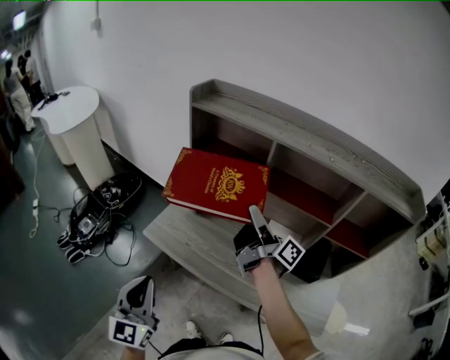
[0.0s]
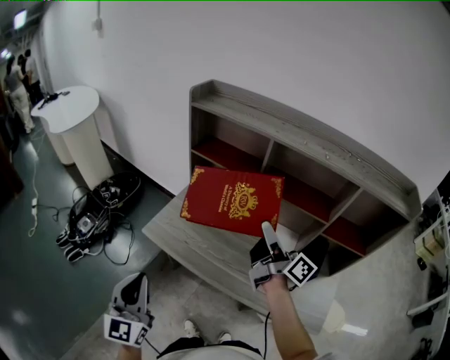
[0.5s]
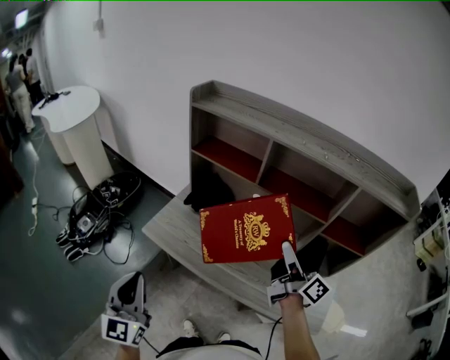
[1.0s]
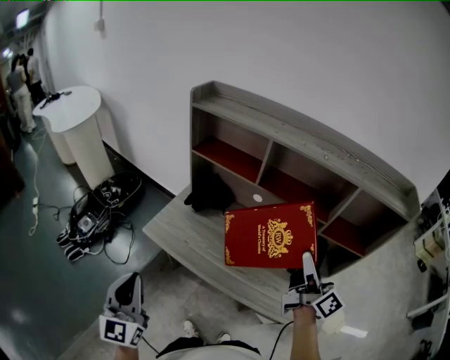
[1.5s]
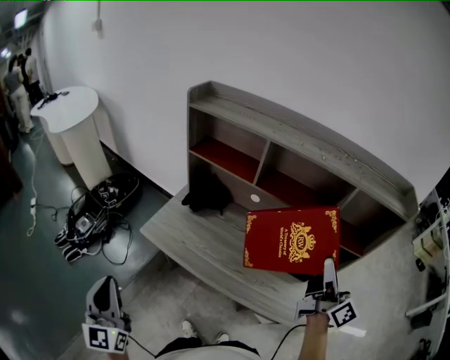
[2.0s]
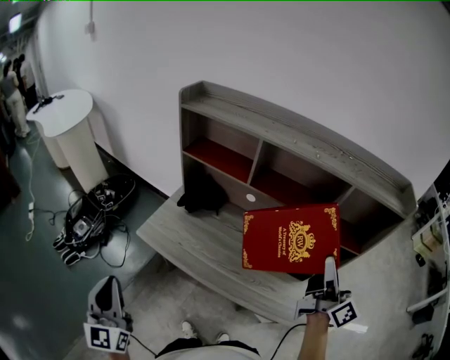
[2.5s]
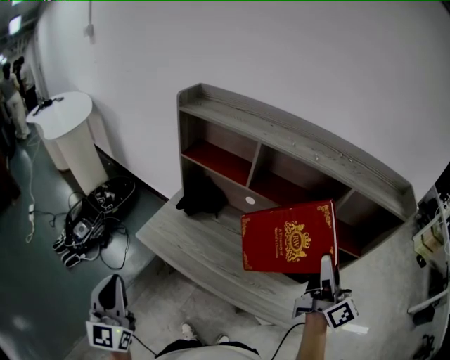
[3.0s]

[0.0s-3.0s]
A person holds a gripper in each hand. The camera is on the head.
0.0s to 1.5s: The right gripper is displaced backward and to the right by approximately 20 cm, and turns by roughly 40 degrees.
1.5s to 3.0s: The right gripper is displaced upward by some 5 cm.

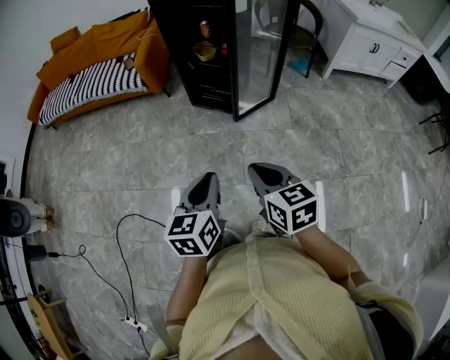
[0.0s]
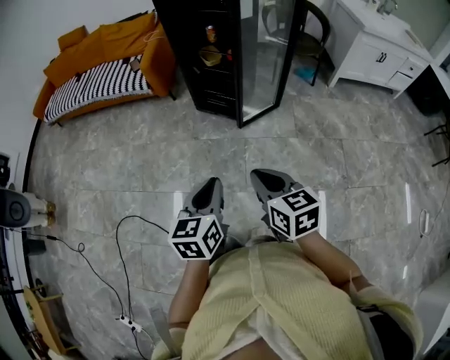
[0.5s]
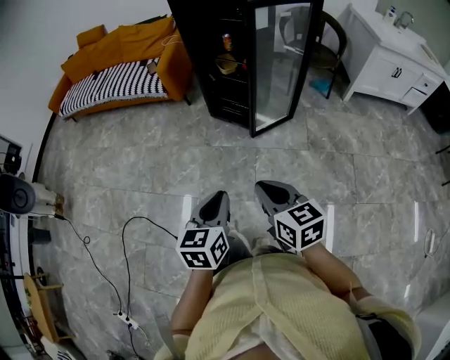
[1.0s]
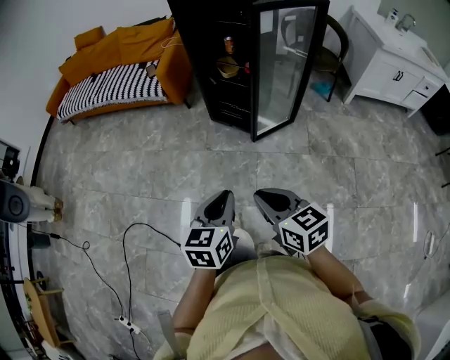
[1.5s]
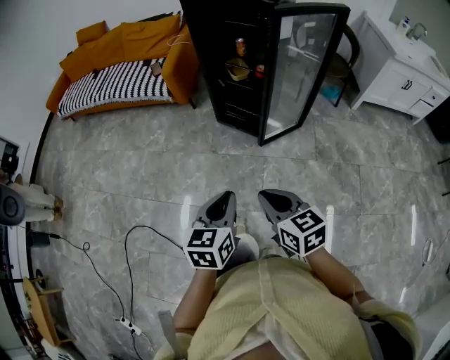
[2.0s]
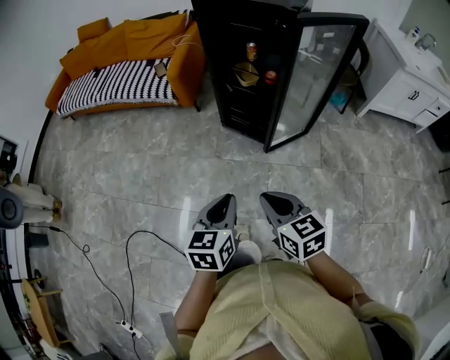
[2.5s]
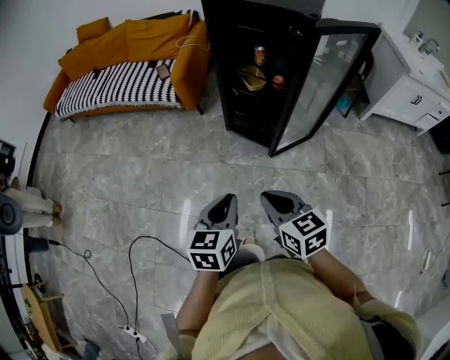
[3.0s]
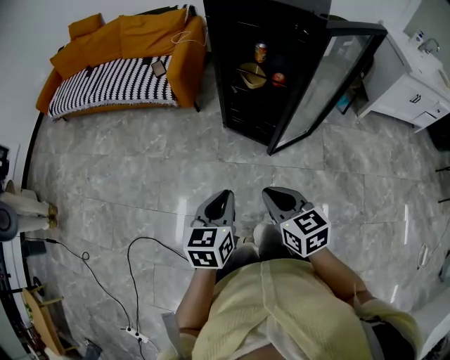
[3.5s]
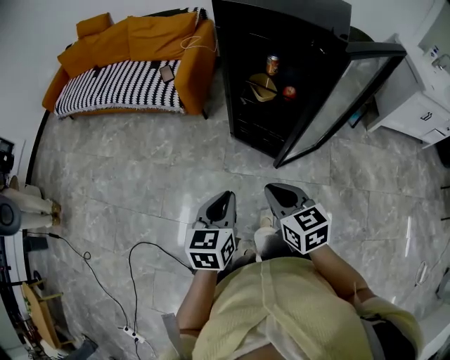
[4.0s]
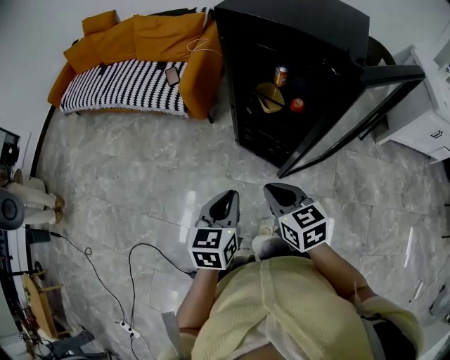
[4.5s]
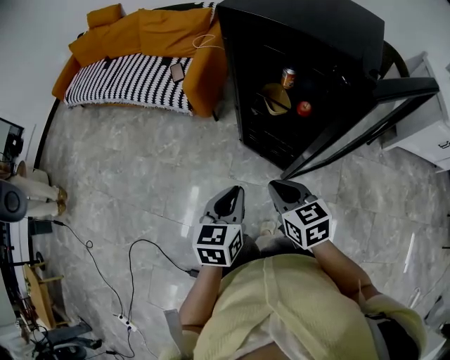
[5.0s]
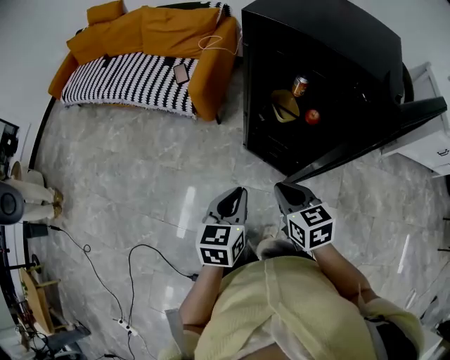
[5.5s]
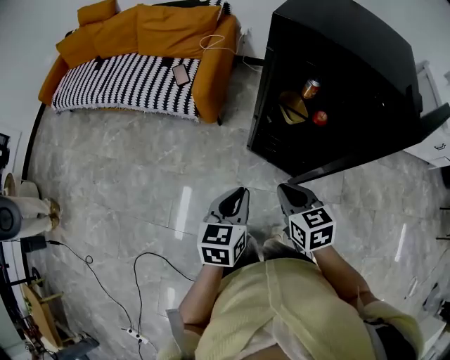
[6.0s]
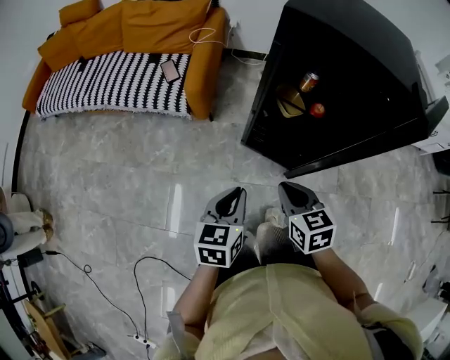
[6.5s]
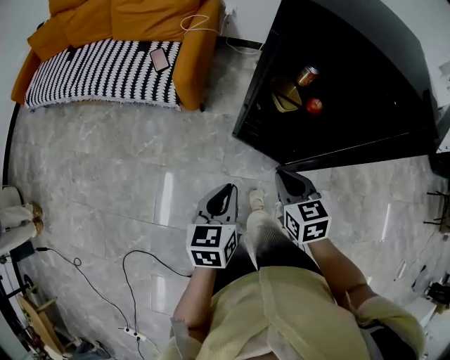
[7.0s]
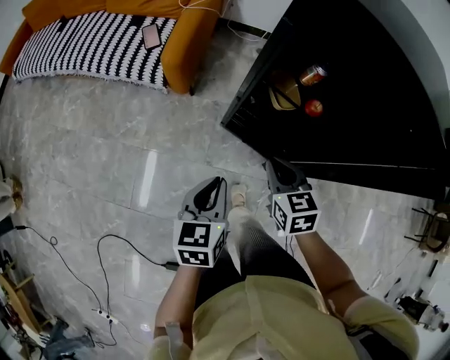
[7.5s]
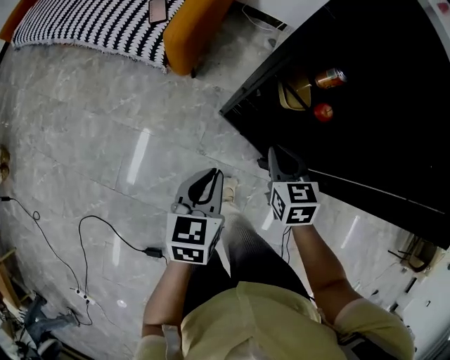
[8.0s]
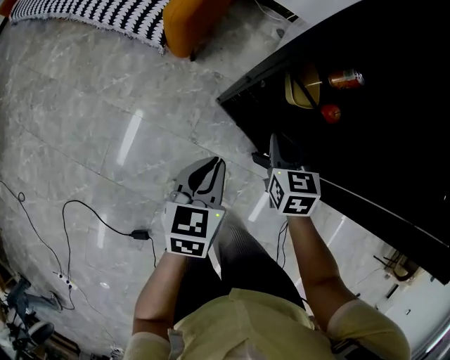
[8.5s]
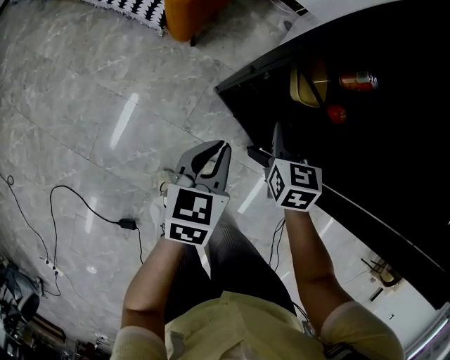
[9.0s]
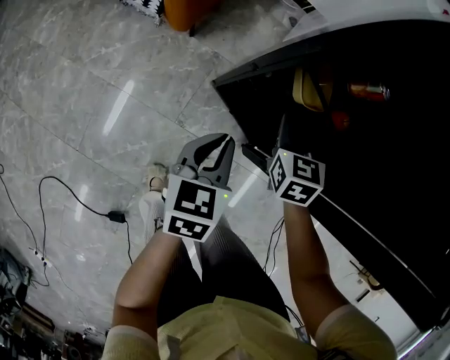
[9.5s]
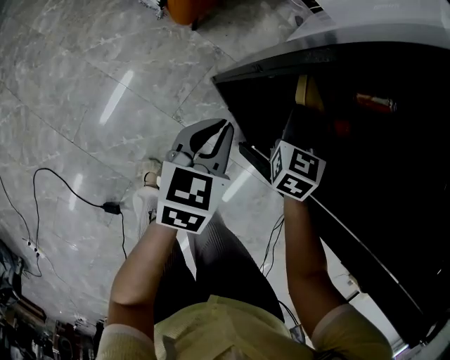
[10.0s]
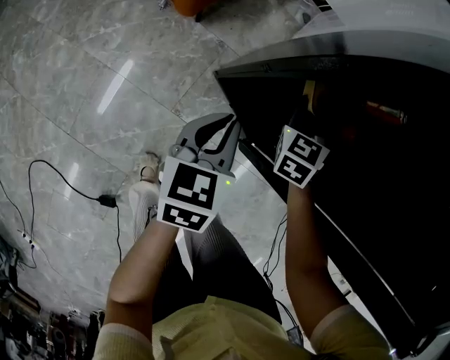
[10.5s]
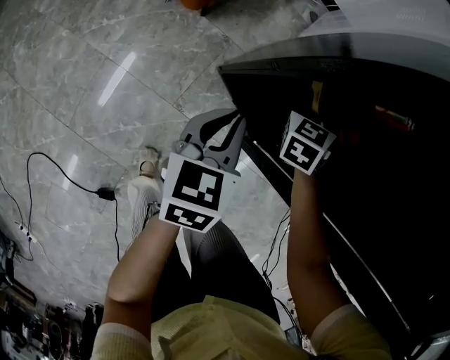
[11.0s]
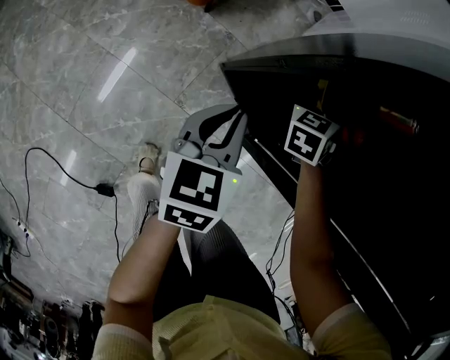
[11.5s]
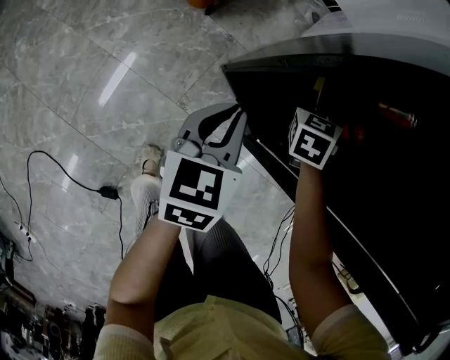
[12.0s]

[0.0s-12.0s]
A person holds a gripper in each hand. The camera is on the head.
0.0s to 2.0s: The two grippers go roughly 10 cm forward.
2.0s to 4.0s: Both grippers move forward, about 20 cm.
4.0s to 6.0s: Both grippers move forward, about 20 cm.
6.0s to 8.0s: The left gripper is displaced downward and forward by approximately 15 cm. Meanwhile the right gripper heads forward and downward, covering about 20 cm.
8.0s to 10.0s: Both grippers move forward and downward, about 15 cm.
10.0s to 12.0s: The right gripper moves approximately 5 cm.

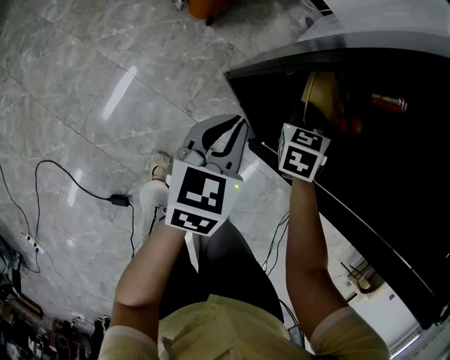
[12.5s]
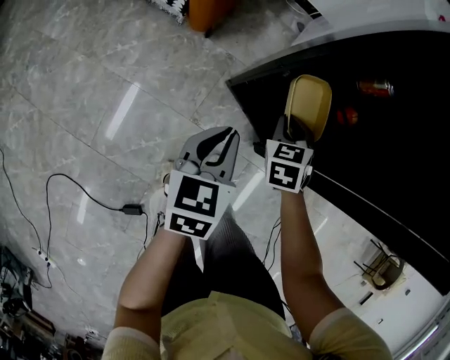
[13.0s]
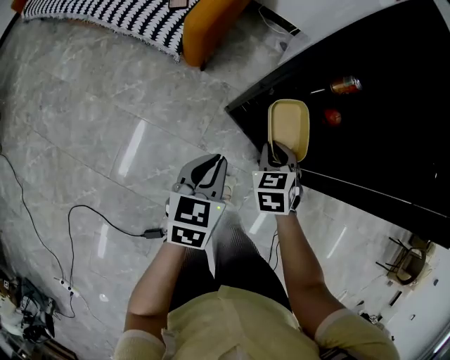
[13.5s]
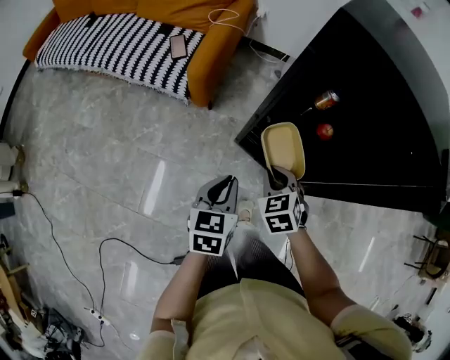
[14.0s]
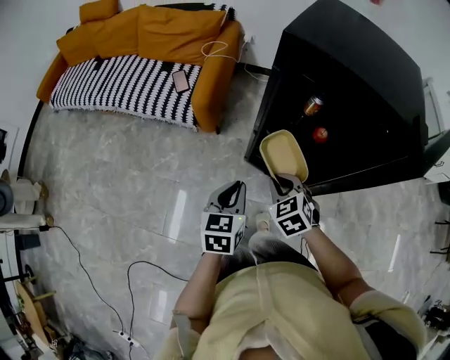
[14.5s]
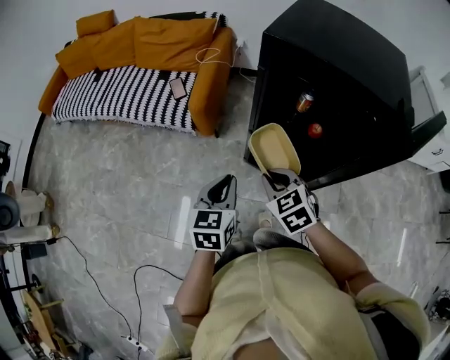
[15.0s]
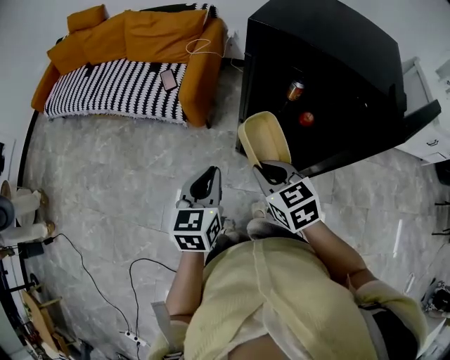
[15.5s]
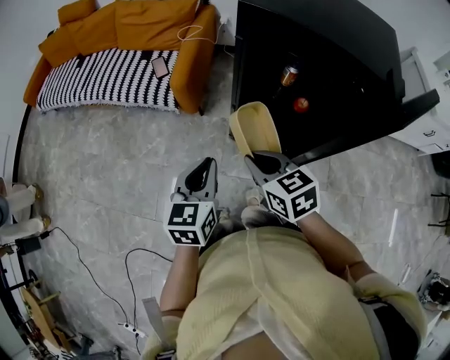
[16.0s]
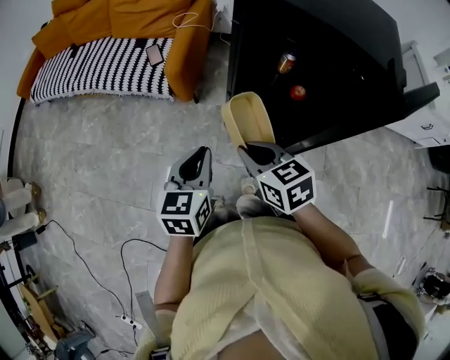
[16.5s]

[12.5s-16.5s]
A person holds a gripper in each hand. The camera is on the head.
12.5s to 14.5s: The two grippers go about 25 cm upward and backward.
14.5s to 16.5s: The right gripper heads upward and backward, covering some 10 cm, and rotates approximately 30 degrees, while the left gripper moves upward, about 5 cm.

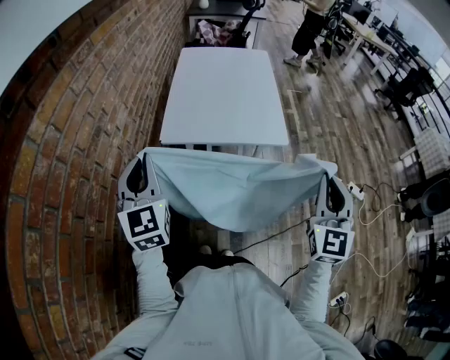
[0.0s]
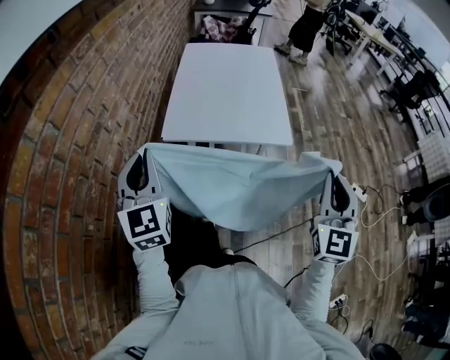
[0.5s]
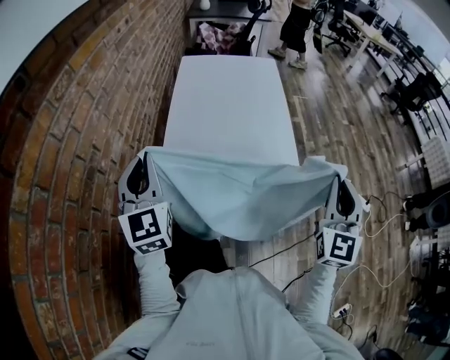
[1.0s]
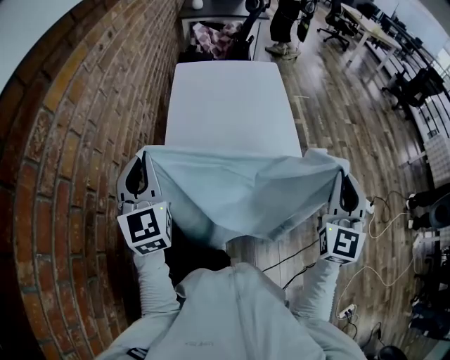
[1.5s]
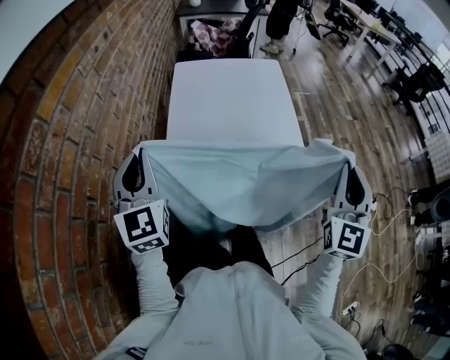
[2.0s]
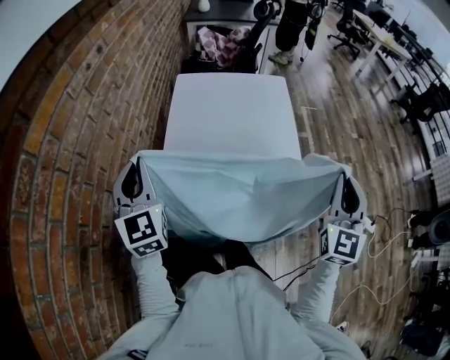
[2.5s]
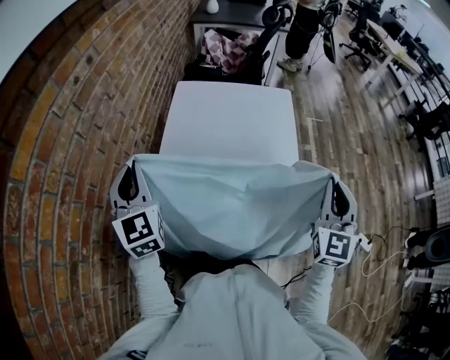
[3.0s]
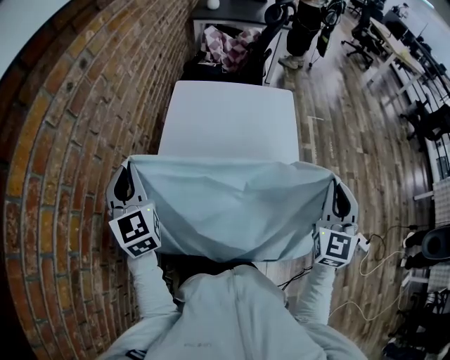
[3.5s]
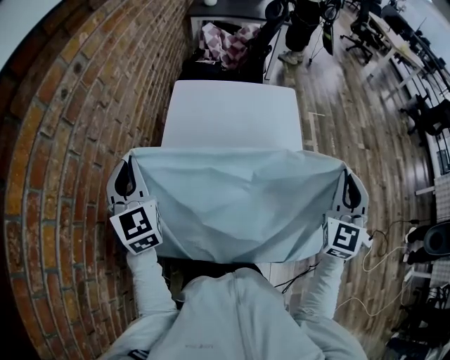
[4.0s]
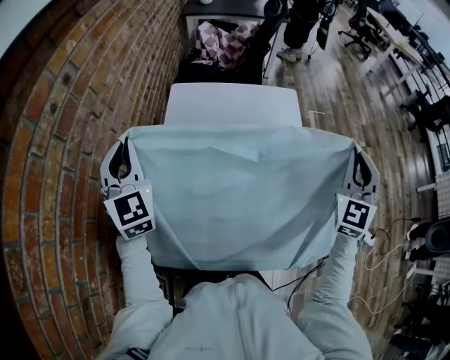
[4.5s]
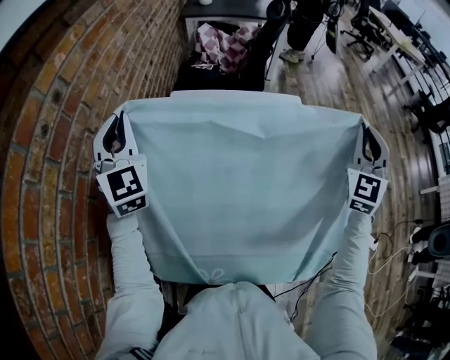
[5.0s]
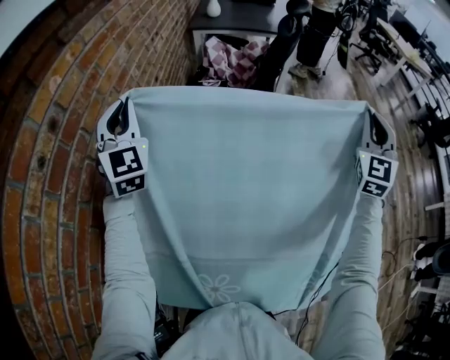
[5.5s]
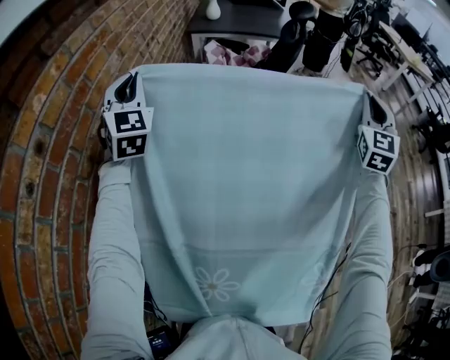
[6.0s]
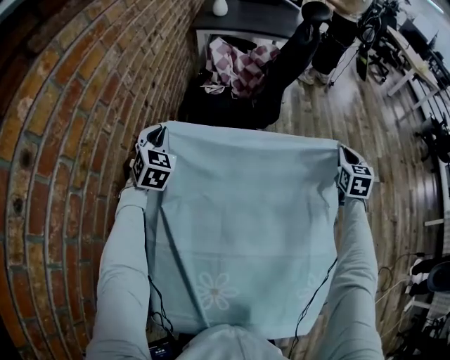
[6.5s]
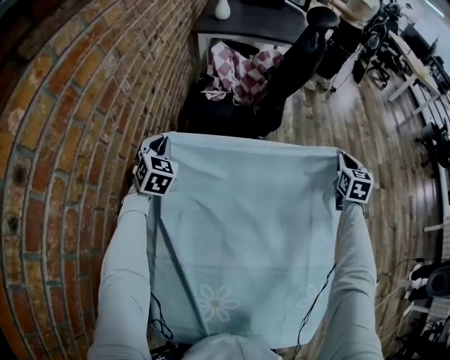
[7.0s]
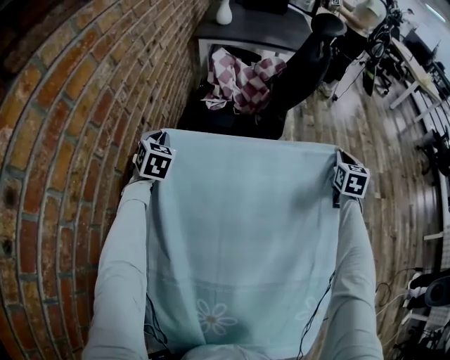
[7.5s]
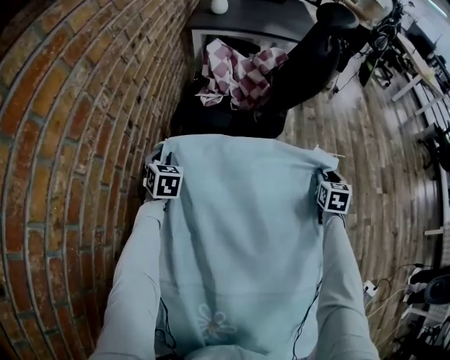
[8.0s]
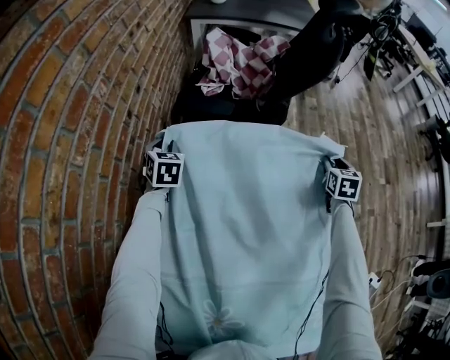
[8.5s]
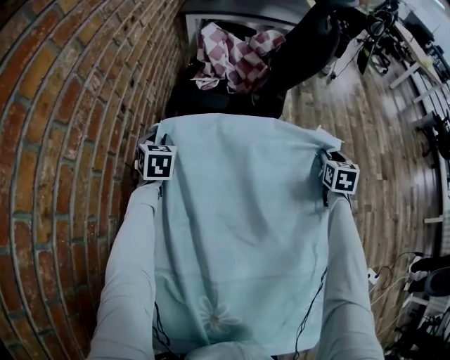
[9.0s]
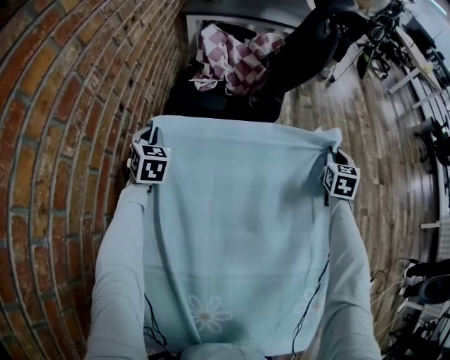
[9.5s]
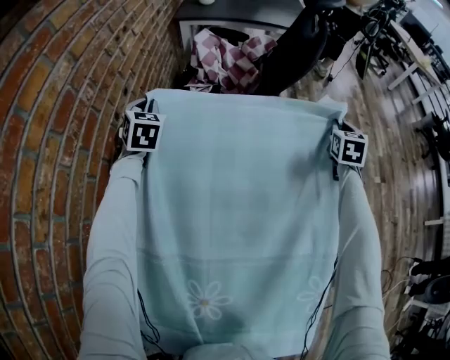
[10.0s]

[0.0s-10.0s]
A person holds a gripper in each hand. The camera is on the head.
0.0s to 2.0s: Both grippers travel together forward, about 30 cm.
2.0s to 4.0s: The two grippers go about 25 cm forward.
4.0s to 6.0s: The grippers both shift forward by roughly 40 cm.
6.0s to 8.0s: The two grippers go approximately 40 cm downward. The left gripper points its fingers about 40 degrees further downward. The right gripper angles its fingers downward, by about 40 degrees, and opens.
8.0s to 10.0s: The two grippers go approximately 15 cm upward and forward. The right gripper closes its fingers.
